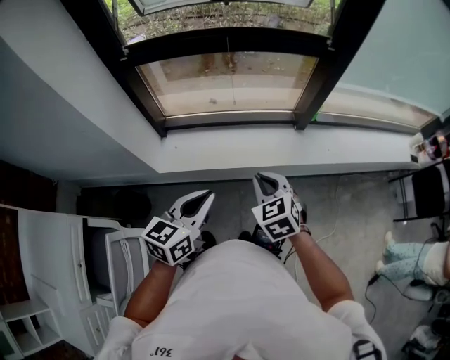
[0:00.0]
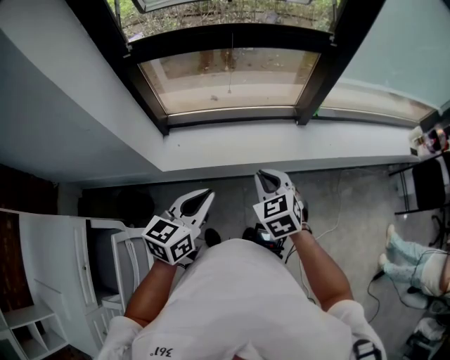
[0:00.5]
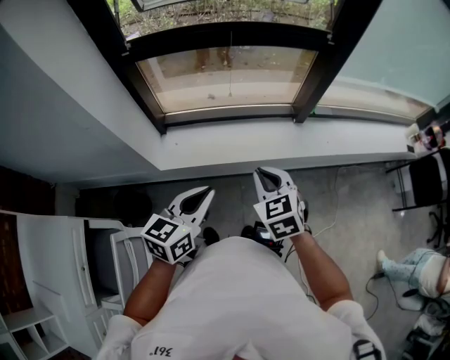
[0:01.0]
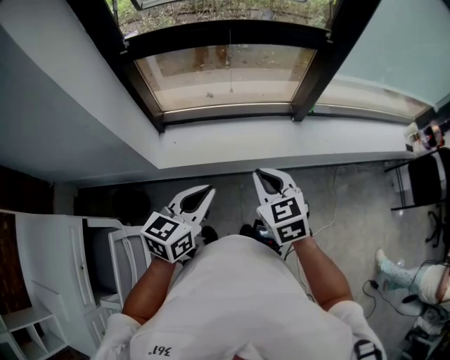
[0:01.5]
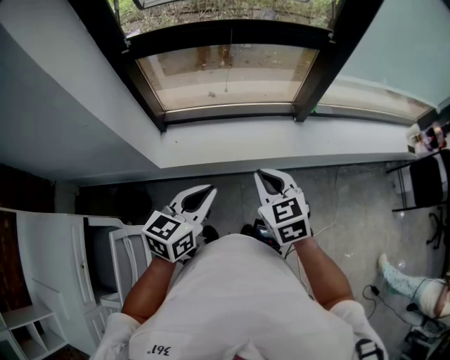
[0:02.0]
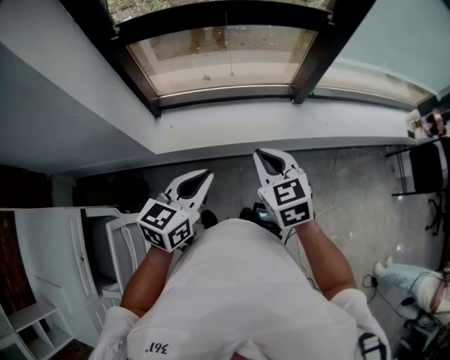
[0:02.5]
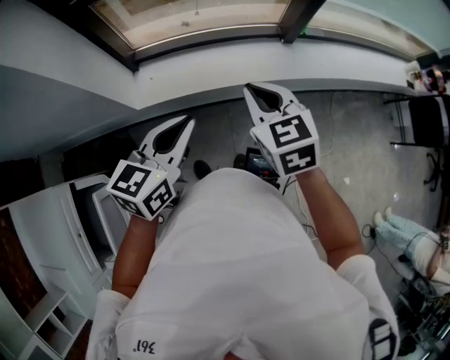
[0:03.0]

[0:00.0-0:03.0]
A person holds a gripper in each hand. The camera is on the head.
0:00.0 to 0:01.5: The right gripper shifts by roughly 5 cm.
0:01.5 to 0:03.0: The grippers move only a little.

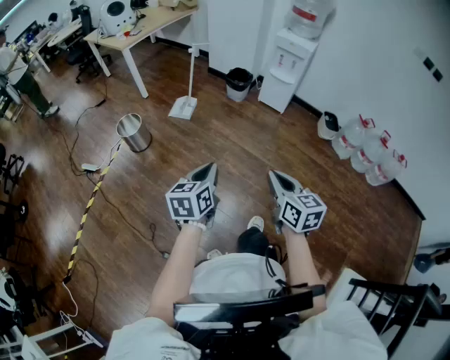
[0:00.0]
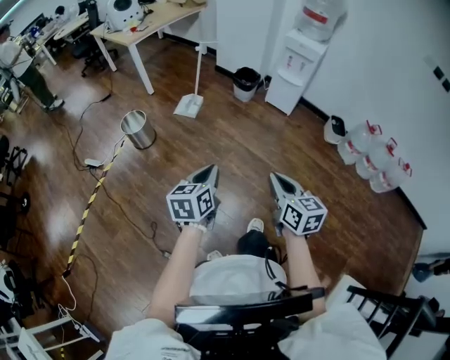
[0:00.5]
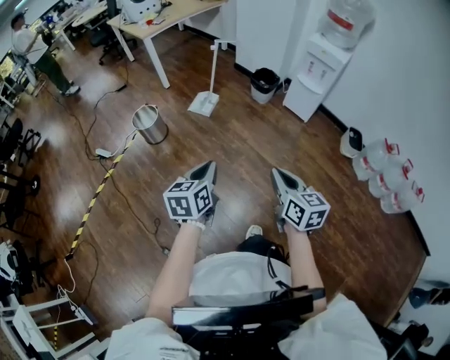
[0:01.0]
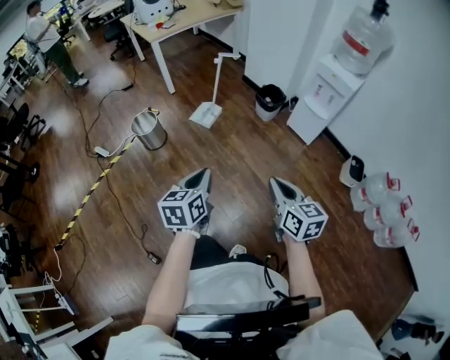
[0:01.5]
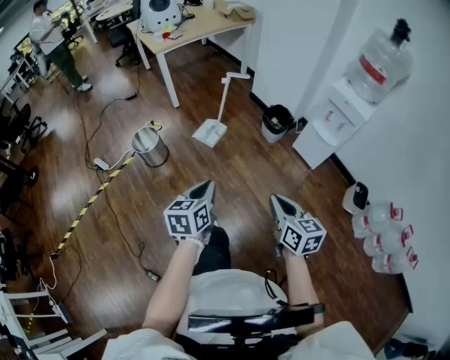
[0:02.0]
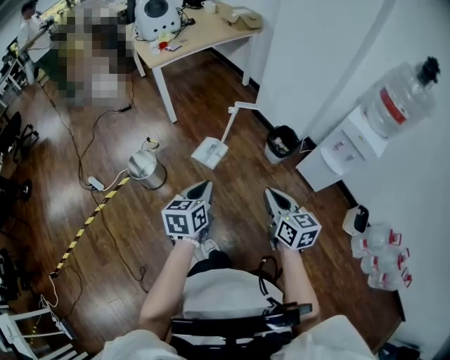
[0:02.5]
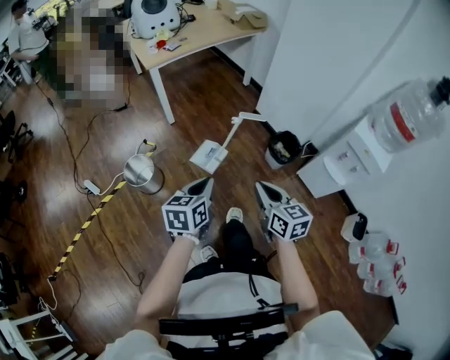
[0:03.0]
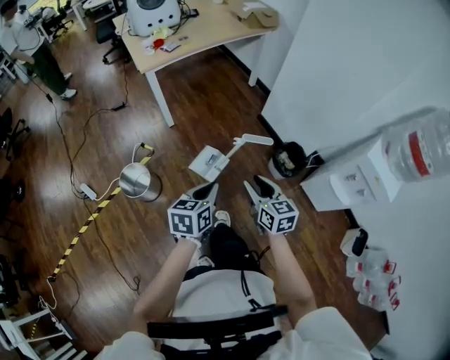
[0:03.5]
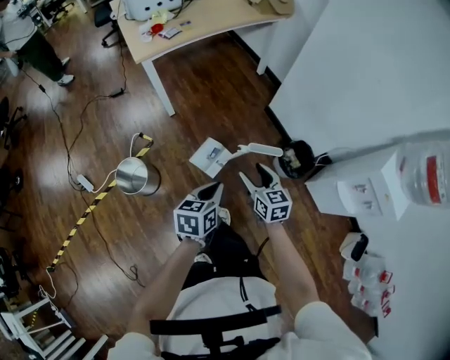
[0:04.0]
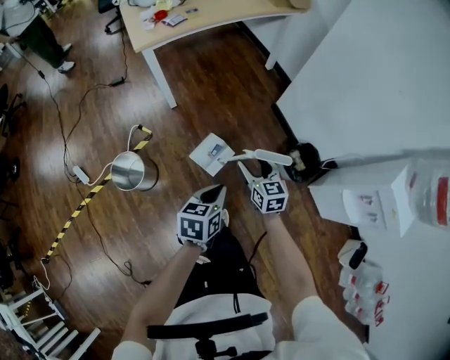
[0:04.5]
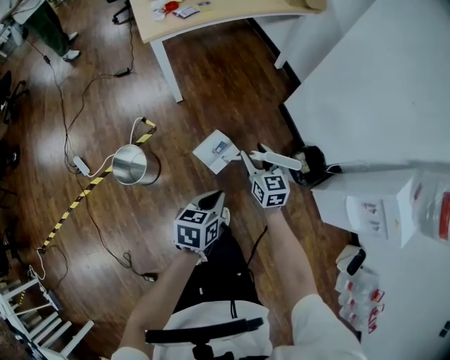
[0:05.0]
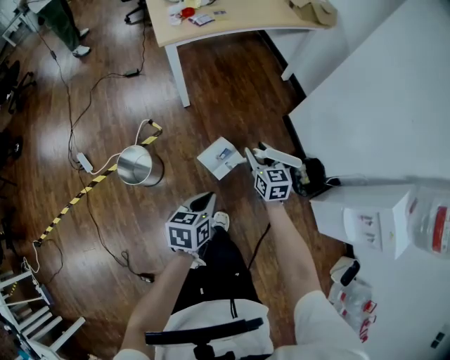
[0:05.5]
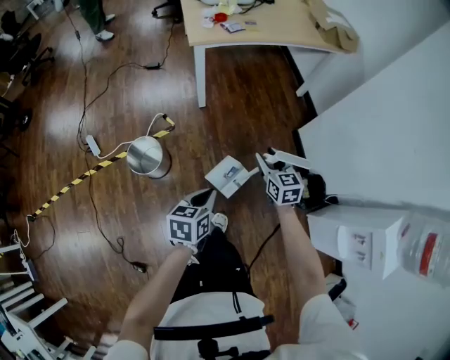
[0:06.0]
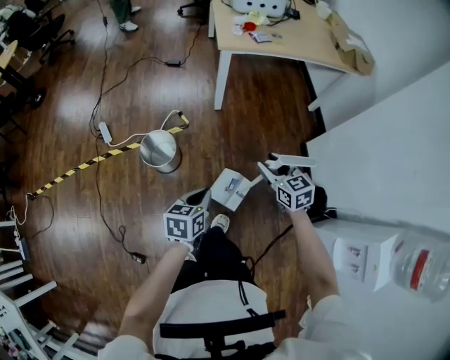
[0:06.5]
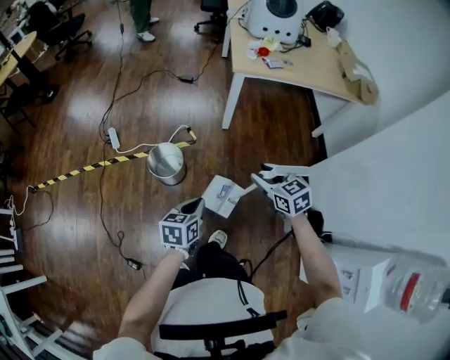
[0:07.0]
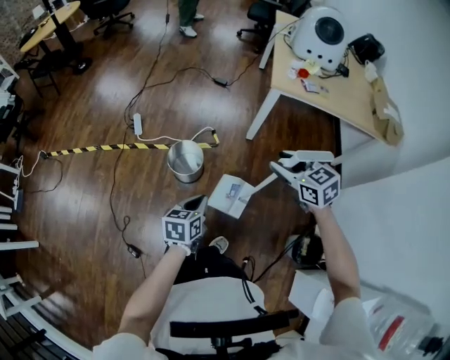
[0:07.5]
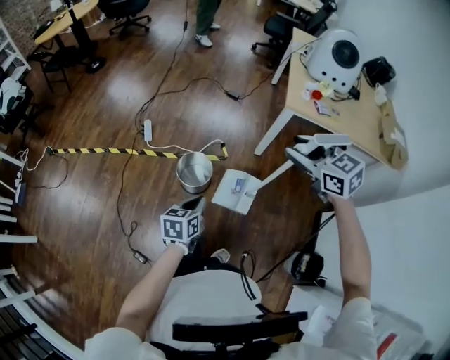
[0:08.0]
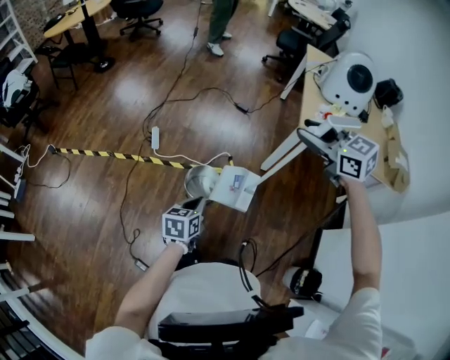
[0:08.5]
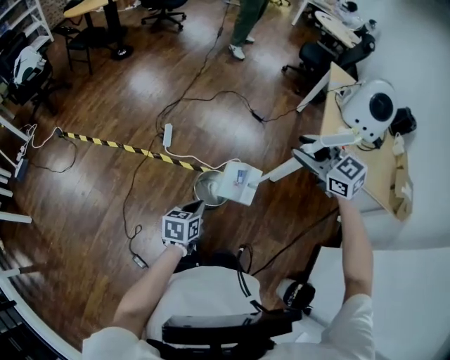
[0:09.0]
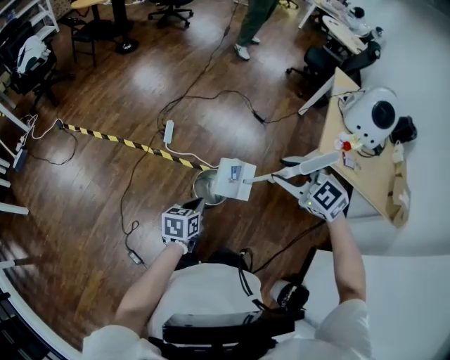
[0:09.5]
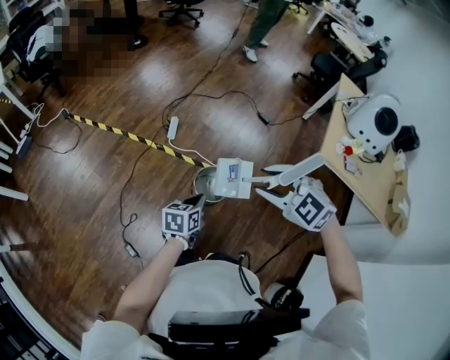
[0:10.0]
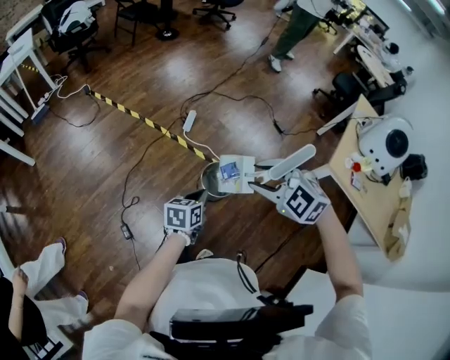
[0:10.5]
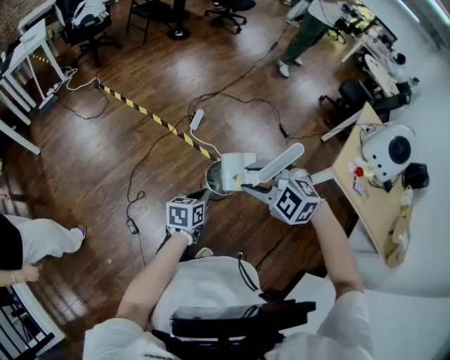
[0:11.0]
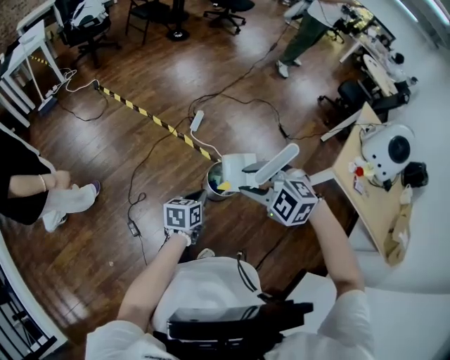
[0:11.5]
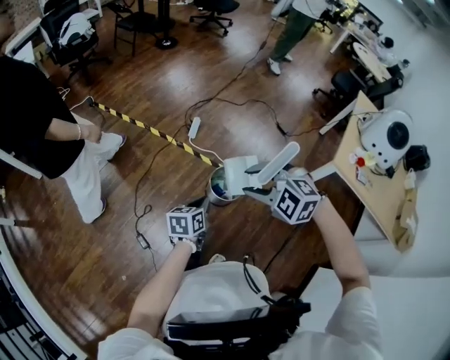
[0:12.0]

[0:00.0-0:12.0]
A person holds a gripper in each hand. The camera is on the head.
0:00.0 to 0:02.0: The grippers both shift forward by some 35 cm.
0:02.0 to 0:04.0: Both grippers are carried forward, roughly 60 cm. The right gripper opens its fingers.
0:04.0 to 0:06.0: The right gripper travels forward and to the left by some 15 cm. Meanwhile the left gripper travels to the left by about 10 cm.
0:06.0 to 0:08.0: The left gripper shifts by about 25 cm, and swivels roughly 30 degrees, while the right gripper moves upward, some 30 cm, and swivels roughly 50 degrees.
0:08.0 to 0:10.0: The left gripper moves forward and to the left, about 15 cm. Meanwhile the right gripper moves to the left, some 20 cm, and rolls counterclockwise, seen from behind, by some 40 degrees.
0:10.0 to 0:12.0: The two grippers go about 10 cm to the left. The right gripper changes its angle by some 20 degrees.

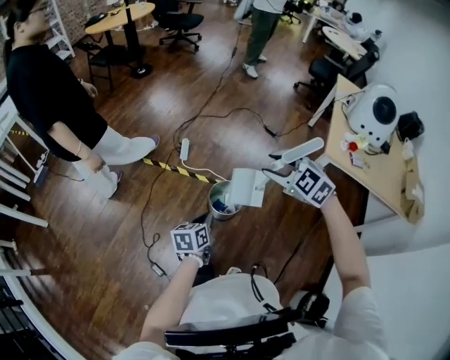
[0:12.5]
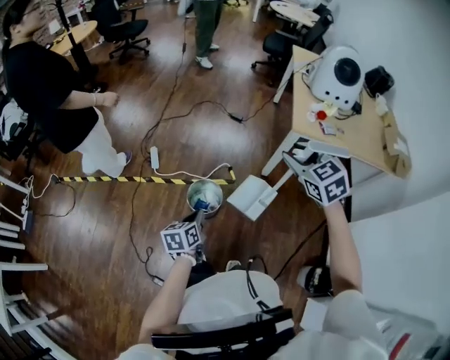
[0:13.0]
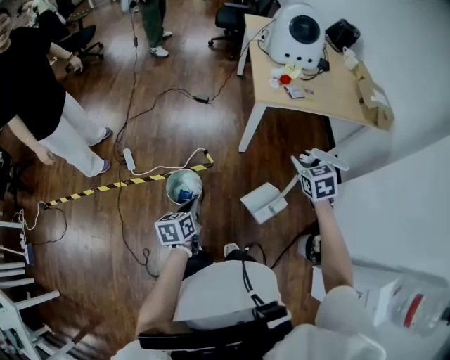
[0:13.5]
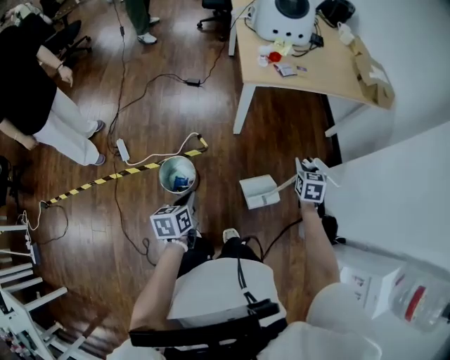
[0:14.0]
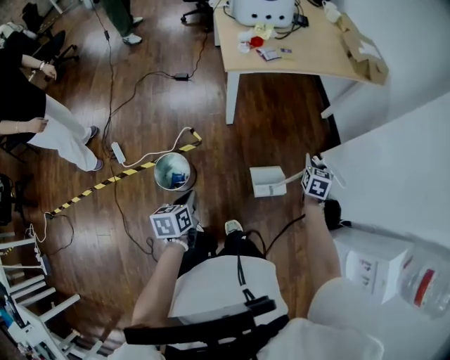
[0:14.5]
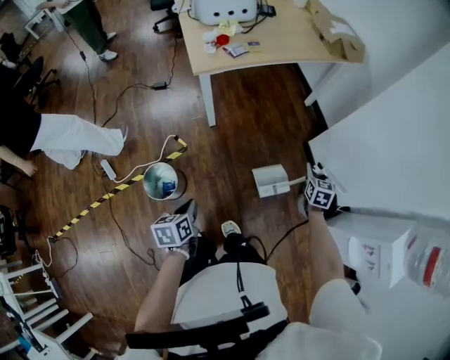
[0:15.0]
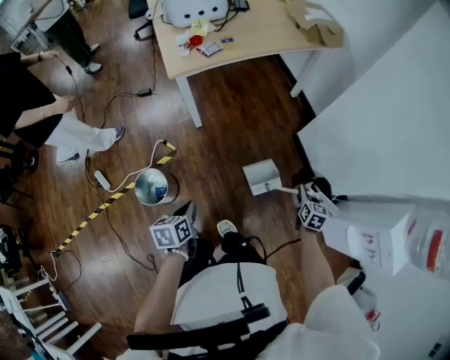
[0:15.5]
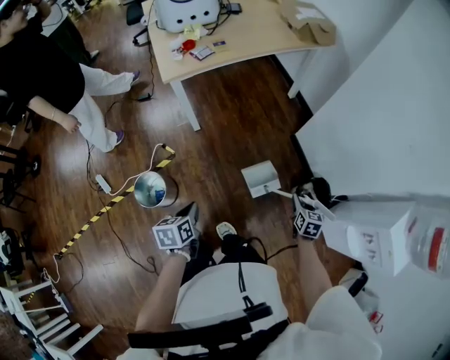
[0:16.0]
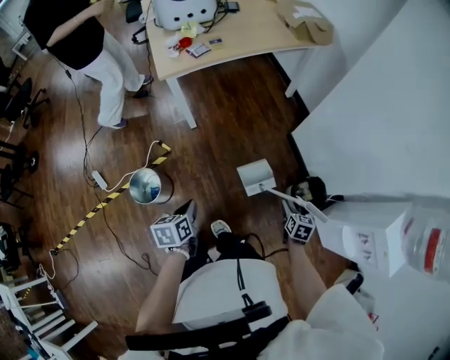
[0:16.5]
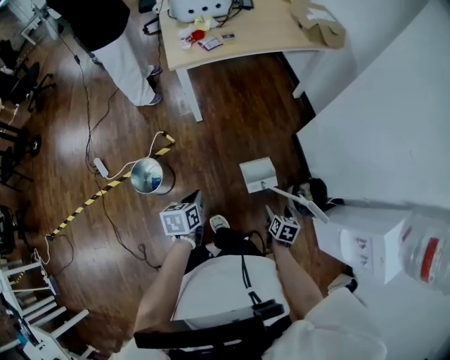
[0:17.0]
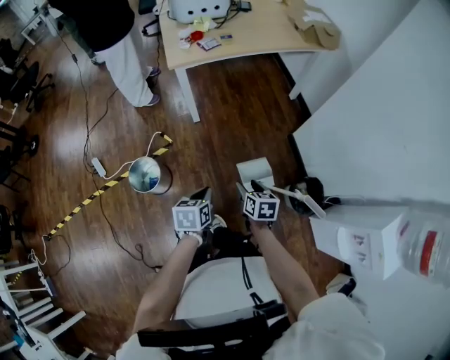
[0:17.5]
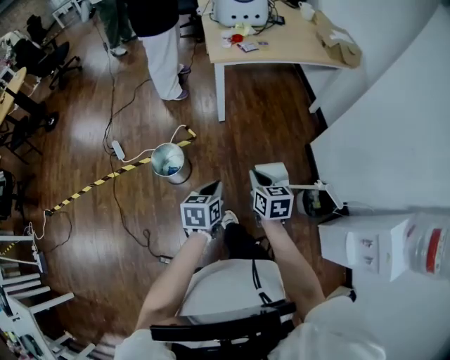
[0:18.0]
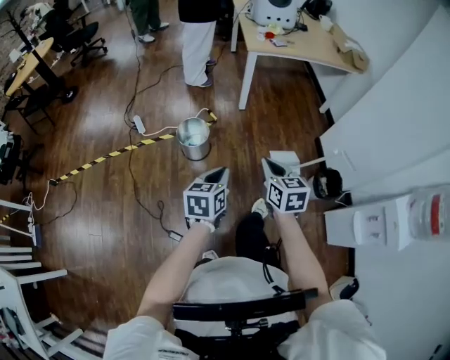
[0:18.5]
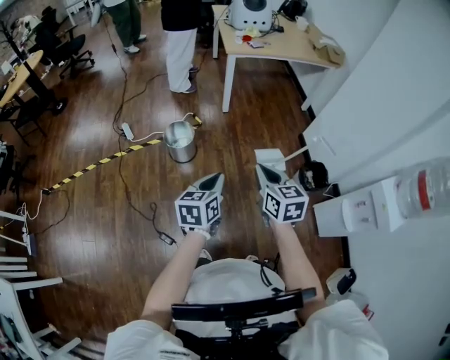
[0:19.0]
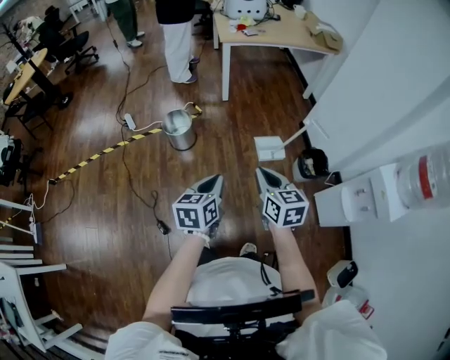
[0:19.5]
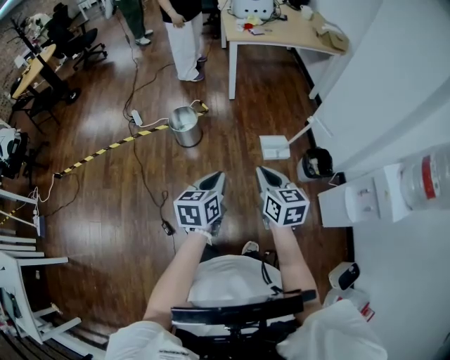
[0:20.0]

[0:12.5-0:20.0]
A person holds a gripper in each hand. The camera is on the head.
0:12.5 to 0:14.5: The right gripper shifts by approximately 60 cm, and swivels roughly 110 degrees. The left gripper ends up about 20 cm from where it was, and turns by roughly 30 degrees.
0:14.5 to 0:16.5: The right gripper is displaced to the right, backward and downward by about 30 cm, turns by approximately 20 degrees, and opens up; the left gripper goes approximately 20 cm to the right.
0:16.5 to 0:18.0: The left gripper goes about 10 cm backward and upward. The right gripper is displaced to the left and upward by approximately 35 cm, swivels about 40 degrees, and closes.
0:18.0 to 0:20.0: The two grippers go about 35 cm backward.

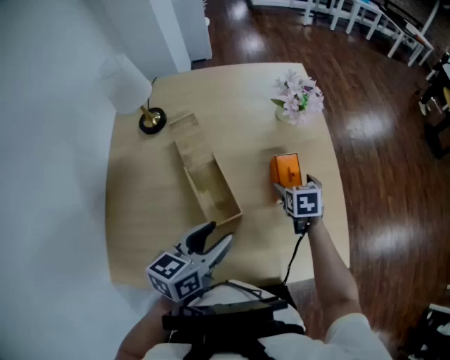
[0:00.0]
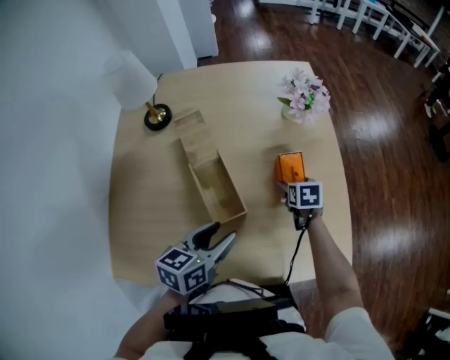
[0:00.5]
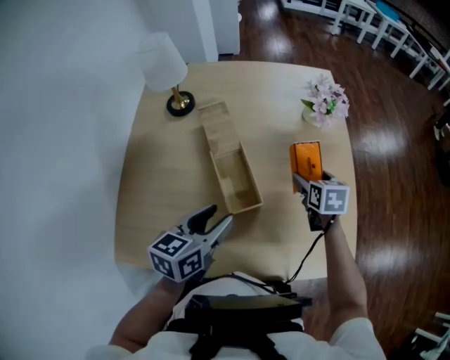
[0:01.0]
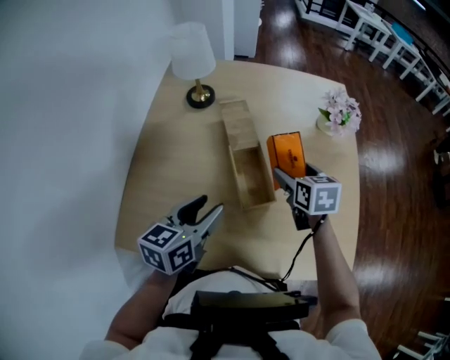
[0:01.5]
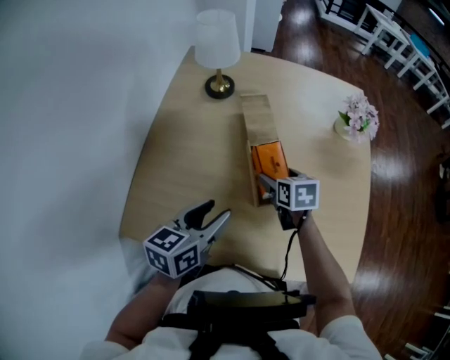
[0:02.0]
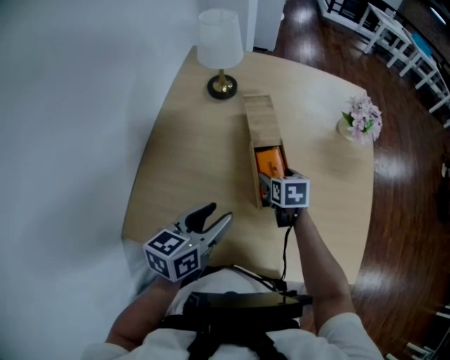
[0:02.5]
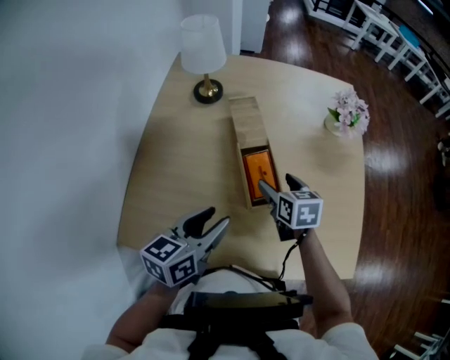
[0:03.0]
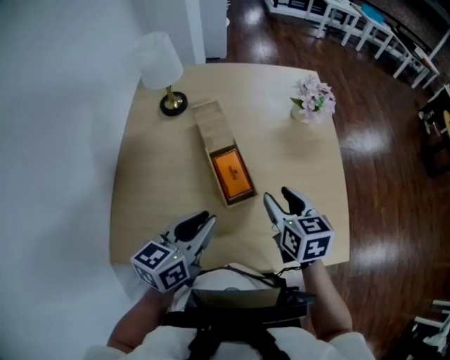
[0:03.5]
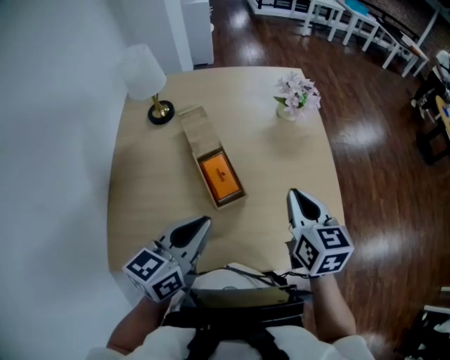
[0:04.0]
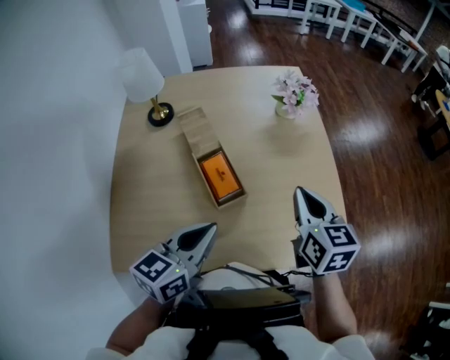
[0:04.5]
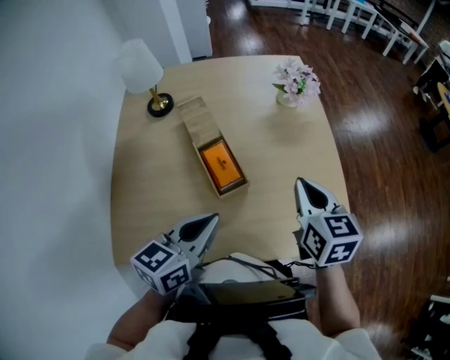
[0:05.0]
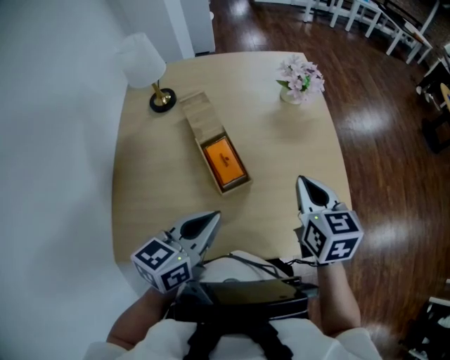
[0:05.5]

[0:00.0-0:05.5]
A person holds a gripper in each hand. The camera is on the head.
0:00.0 to 0:02.0: The right gripper moves to the left, approximately 25 cm, and rotates roughly 20 degrees. Meanwhile the left gripper moves to the left, roughly 15 cm.
0:02.0 to 0:03.5: The right gripper goes approximately 20 cm upward, to the right and backward, and closes up. Meanwhile the left gripper is displaced to the right by roughly 5 cm, and closes.
0:03.5 to 0:05.5: The right gripper travels to the right and upward by roughly 10 cm, and closes; the left gripper travels to the right by roughly 5 cm, and closes.
